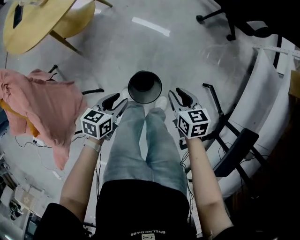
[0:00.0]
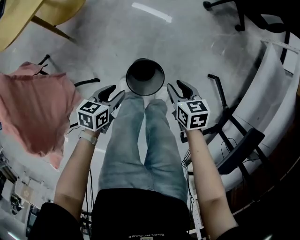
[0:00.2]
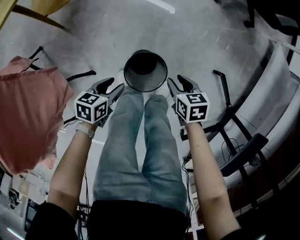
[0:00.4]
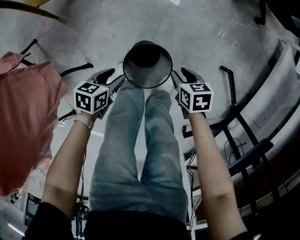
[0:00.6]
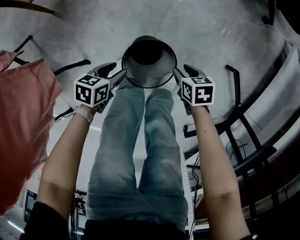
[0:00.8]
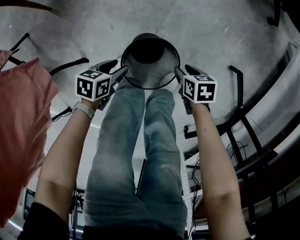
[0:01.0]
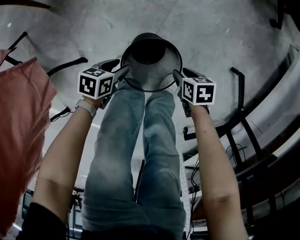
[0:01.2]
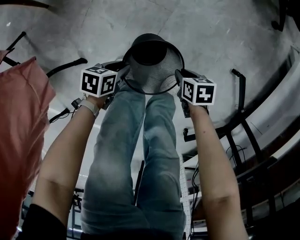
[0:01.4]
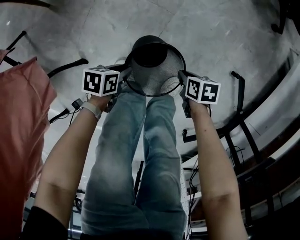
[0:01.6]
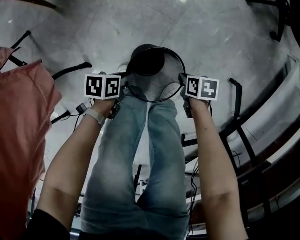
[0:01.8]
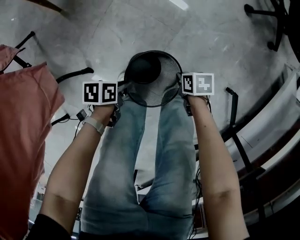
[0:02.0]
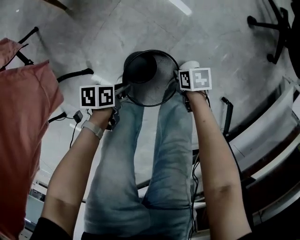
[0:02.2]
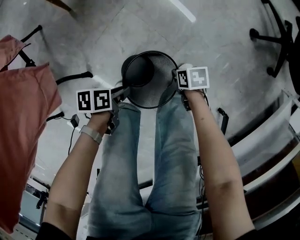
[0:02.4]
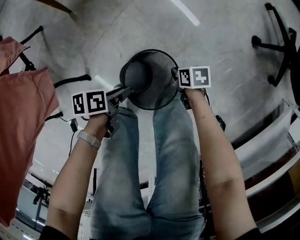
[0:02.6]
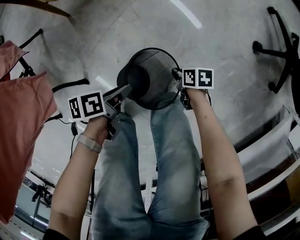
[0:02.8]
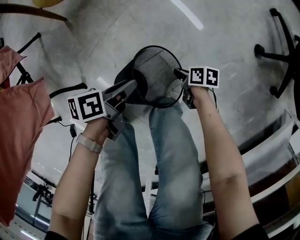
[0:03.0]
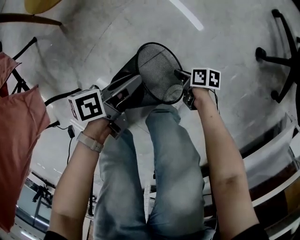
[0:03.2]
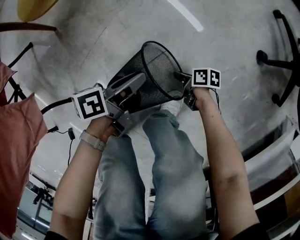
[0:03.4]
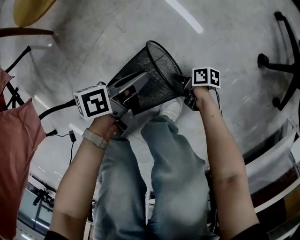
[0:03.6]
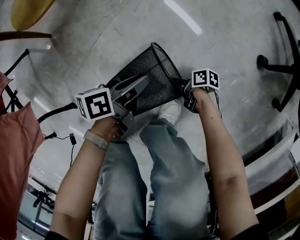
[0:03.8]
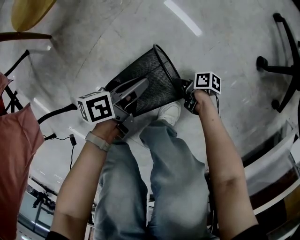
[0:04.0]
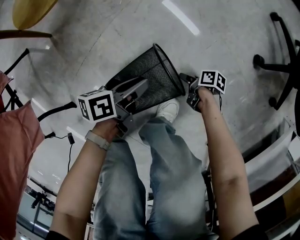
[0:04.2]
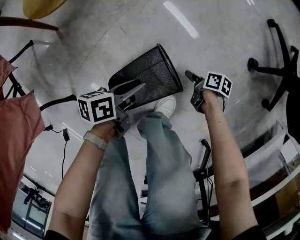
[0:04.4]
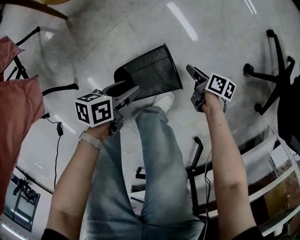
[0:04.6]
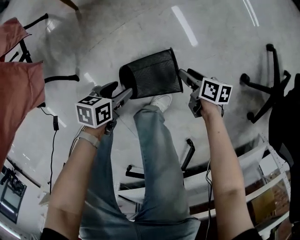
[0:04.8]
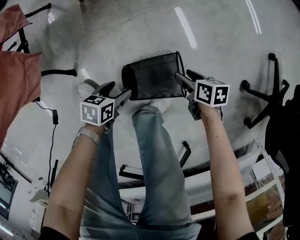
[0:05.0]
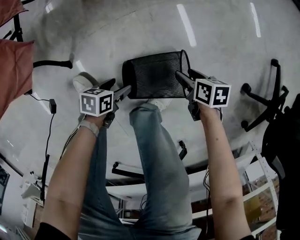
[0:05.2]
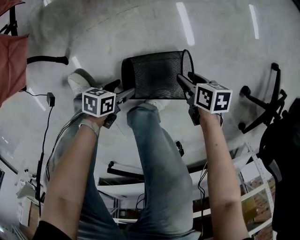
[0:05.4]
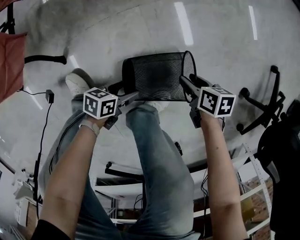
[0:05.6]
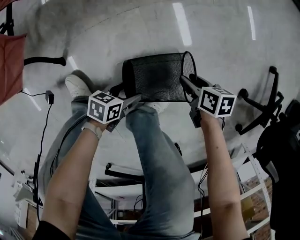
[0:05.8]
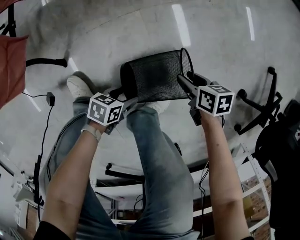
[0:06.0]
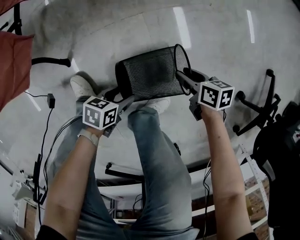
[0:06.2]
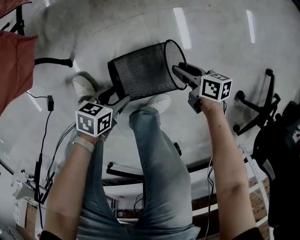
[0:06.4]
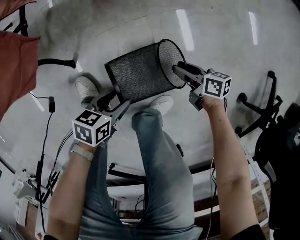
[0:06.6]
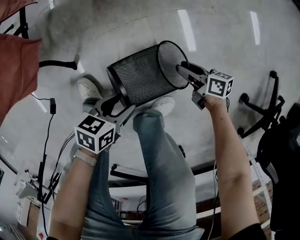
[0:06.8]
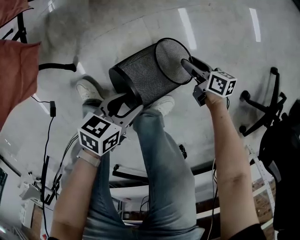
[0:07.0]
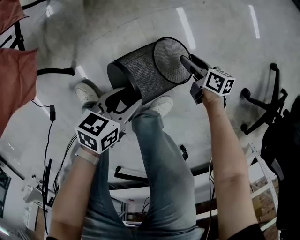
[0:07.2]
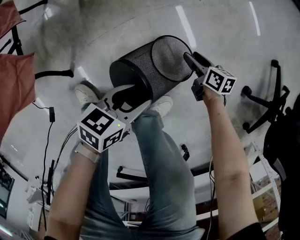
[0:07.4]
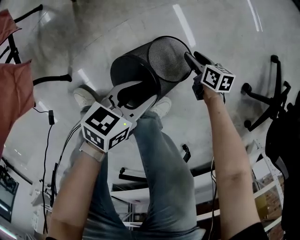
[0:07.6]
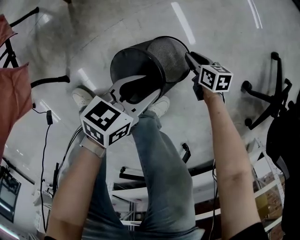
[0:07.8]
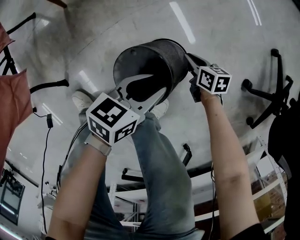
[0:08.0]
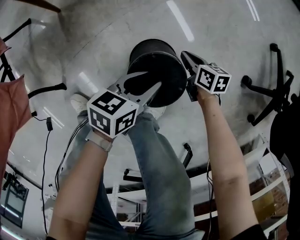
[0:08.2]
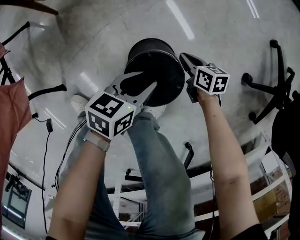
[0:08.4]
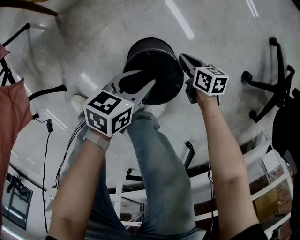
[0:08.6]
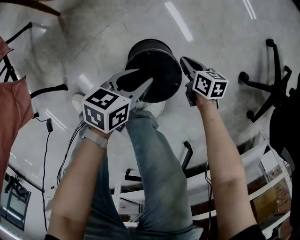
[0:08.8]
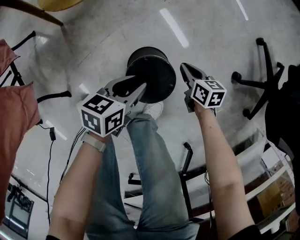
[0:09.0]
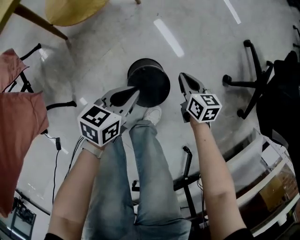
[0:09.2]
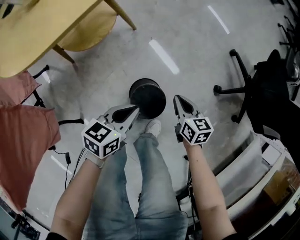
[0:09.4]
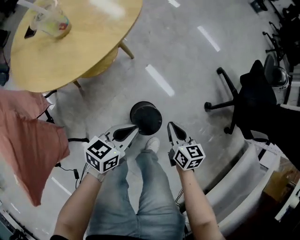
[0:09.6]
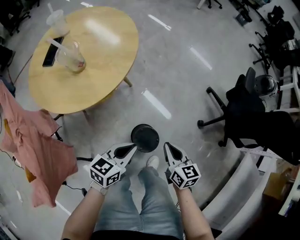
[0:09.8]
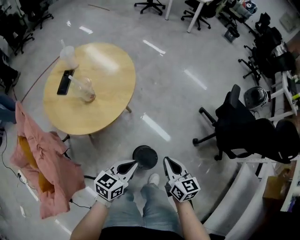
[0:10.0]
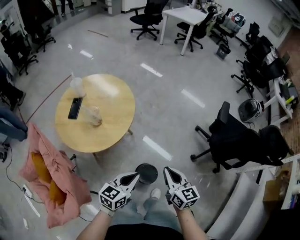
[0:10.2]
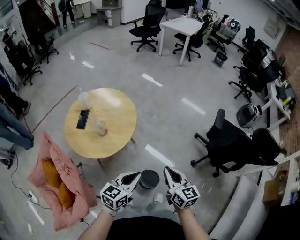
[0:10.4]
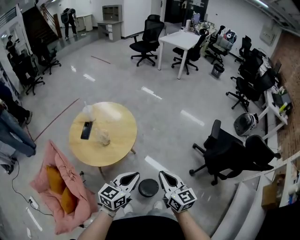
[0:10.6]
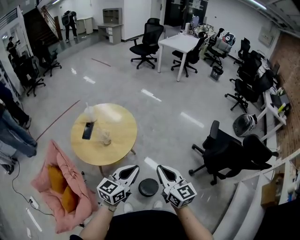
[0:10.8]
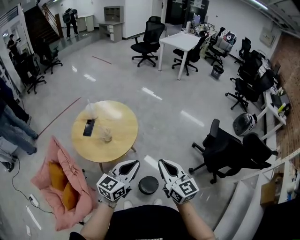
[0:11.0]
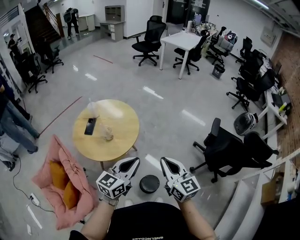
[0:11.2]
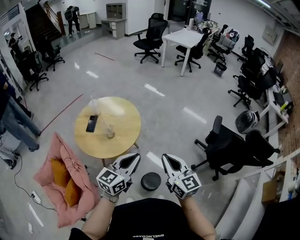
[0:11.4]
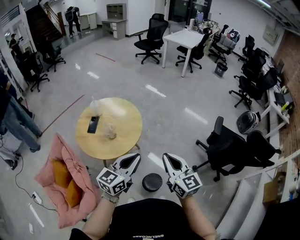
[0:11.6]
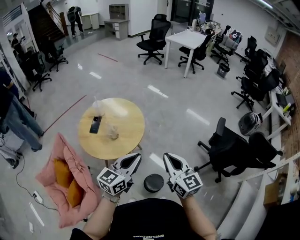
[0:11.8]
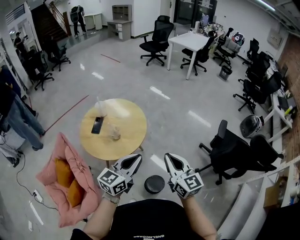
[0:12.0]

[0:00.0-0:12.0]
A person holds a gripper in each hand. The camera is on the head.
0:00.0 to 0:01.6: The grippers both shift downward by roughly 40 cm. The left gripper changes its angle by approximately 30 degrees. Meanwhile the right gripper rotates some 30 degrees.
0:01.6 to 0:03.0: The right gripper changes place by some 25 cm, and rotates roughly 20 degrees. Meanwhile the left gripper ends up some 25 cm from where it was, and swivels some 50 degrees.
0:03.0 to 0:04.4: The right gripper moves roughly 10 cm downward and comes back, and opens up.
0:04.4 to 0:06.0: The left gripper changes place by about 20 cm, and opens its fingers. Meanwhile the right gripper shifts by about 20 cm, and rotates around the line of its fingers by roughly 50 degrees, counterclockwise from behind.
0:06.0 to 0:07.6: The left gripper is displaced upward by some 15 cm, and changes its angle by some 20 degrees, while the right gripper moves about 15 cm, and swivels some 20 degrees.
0:07.6 to 0:09.0: The right gripper moves upward and to the right, roughly 10 cm, and closes.
0:09.0 to 0:10.4: The grippers both shift upward by about 70 cm. The left gripper changes its angle by some 40 degrees, and closes. The right gripper points its fingers some 30 degrees further upward.
0:10.4 to 0:12.0: The two grippers go some 15 cm upward.

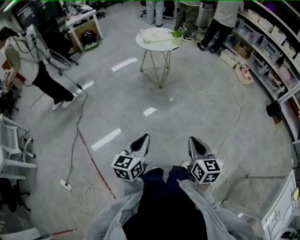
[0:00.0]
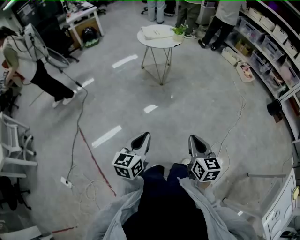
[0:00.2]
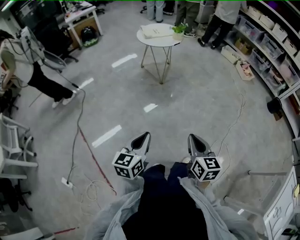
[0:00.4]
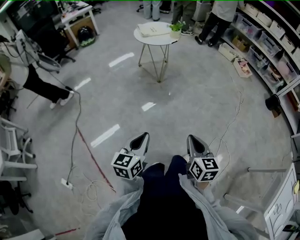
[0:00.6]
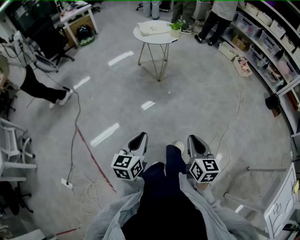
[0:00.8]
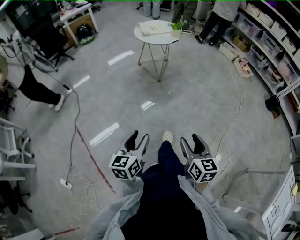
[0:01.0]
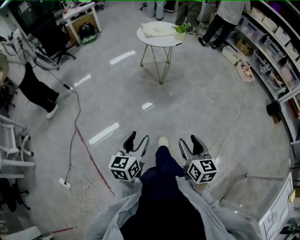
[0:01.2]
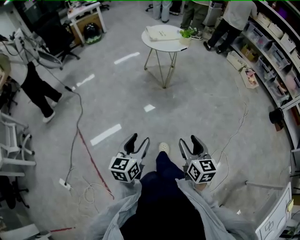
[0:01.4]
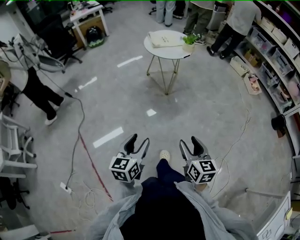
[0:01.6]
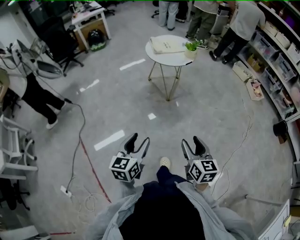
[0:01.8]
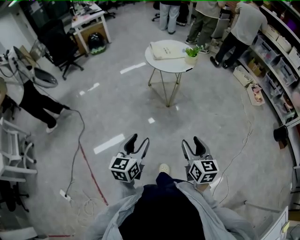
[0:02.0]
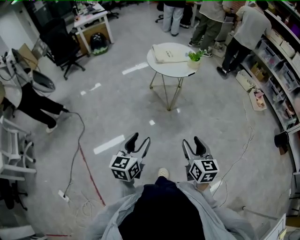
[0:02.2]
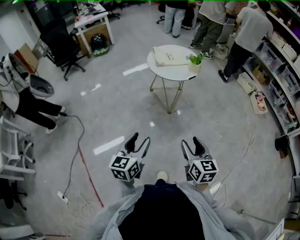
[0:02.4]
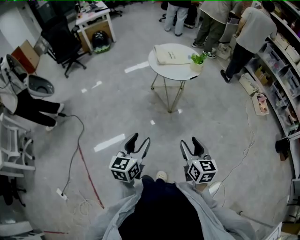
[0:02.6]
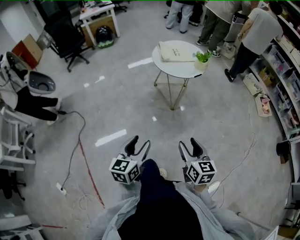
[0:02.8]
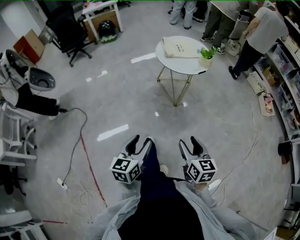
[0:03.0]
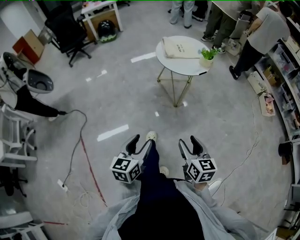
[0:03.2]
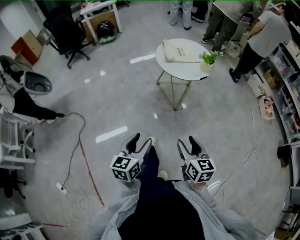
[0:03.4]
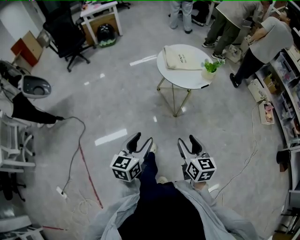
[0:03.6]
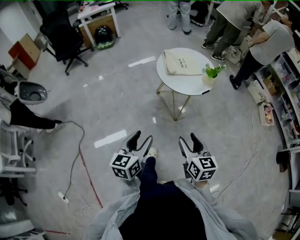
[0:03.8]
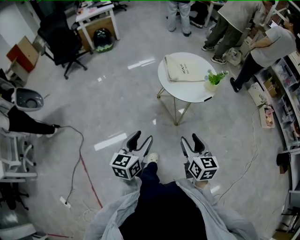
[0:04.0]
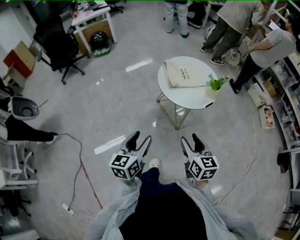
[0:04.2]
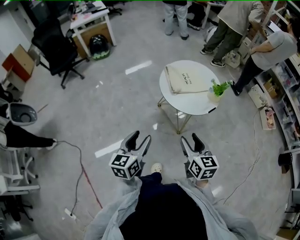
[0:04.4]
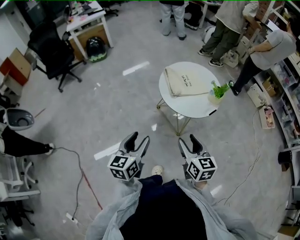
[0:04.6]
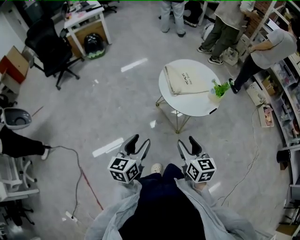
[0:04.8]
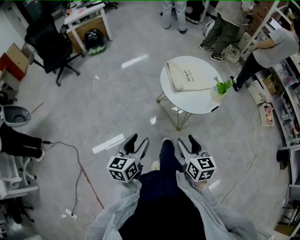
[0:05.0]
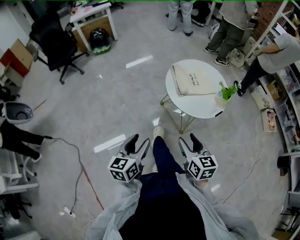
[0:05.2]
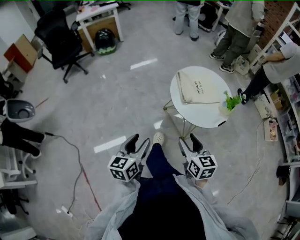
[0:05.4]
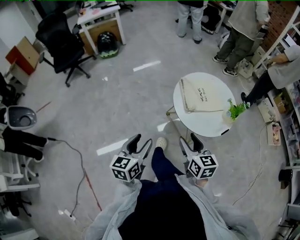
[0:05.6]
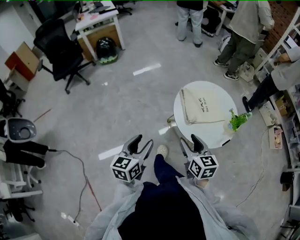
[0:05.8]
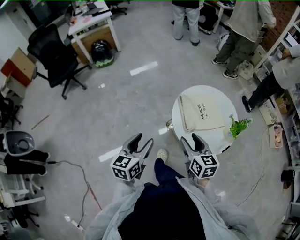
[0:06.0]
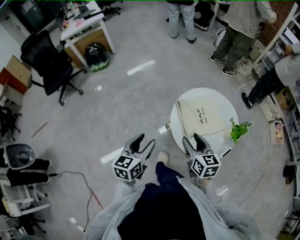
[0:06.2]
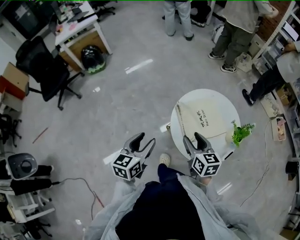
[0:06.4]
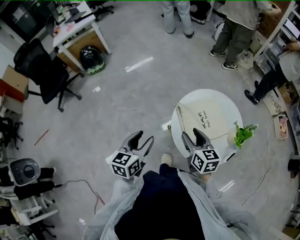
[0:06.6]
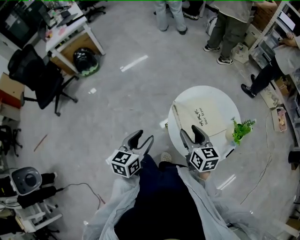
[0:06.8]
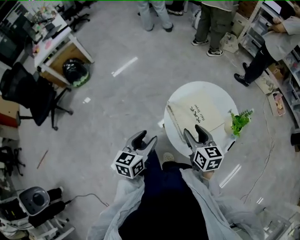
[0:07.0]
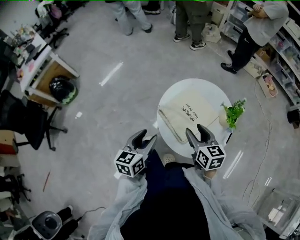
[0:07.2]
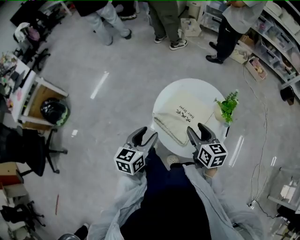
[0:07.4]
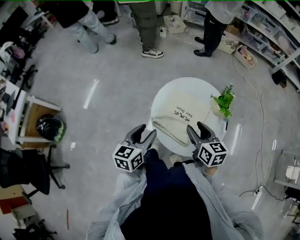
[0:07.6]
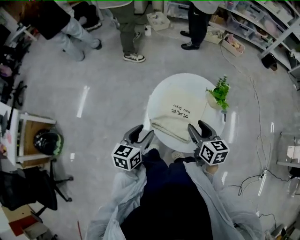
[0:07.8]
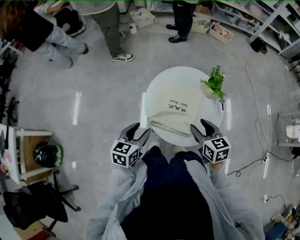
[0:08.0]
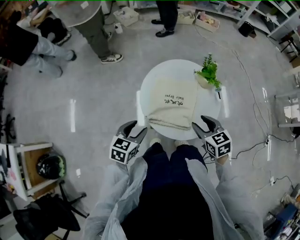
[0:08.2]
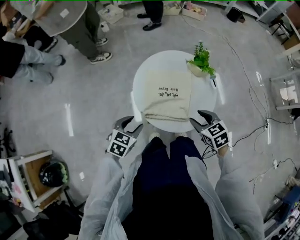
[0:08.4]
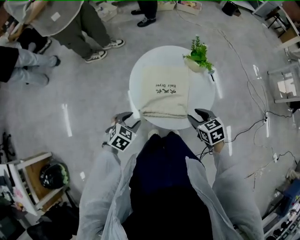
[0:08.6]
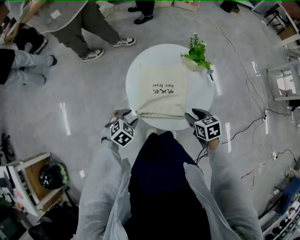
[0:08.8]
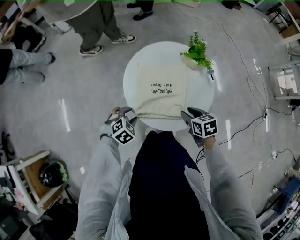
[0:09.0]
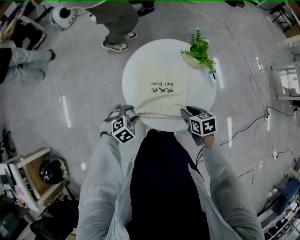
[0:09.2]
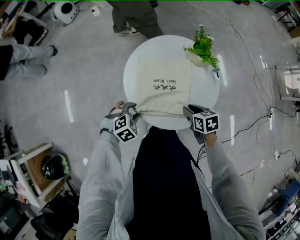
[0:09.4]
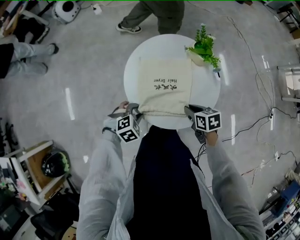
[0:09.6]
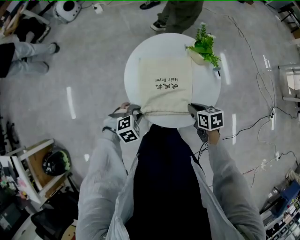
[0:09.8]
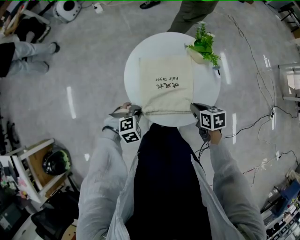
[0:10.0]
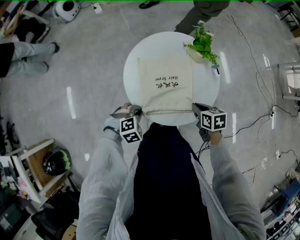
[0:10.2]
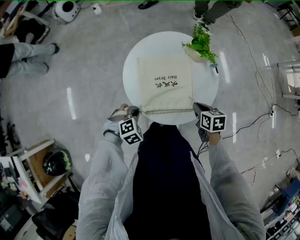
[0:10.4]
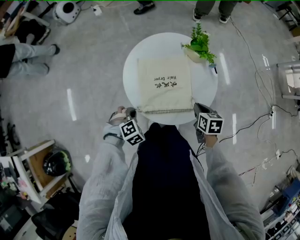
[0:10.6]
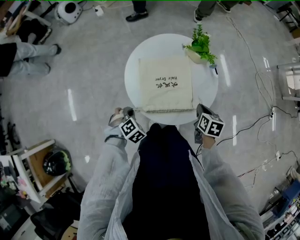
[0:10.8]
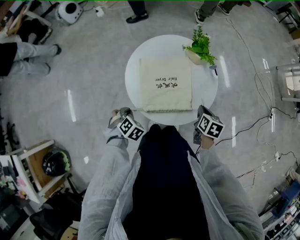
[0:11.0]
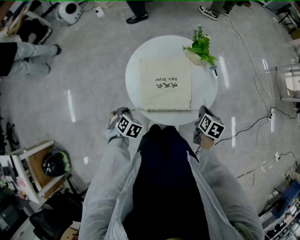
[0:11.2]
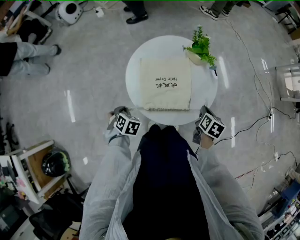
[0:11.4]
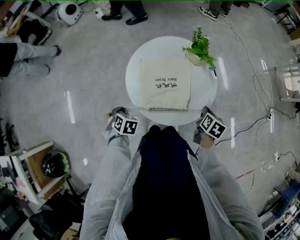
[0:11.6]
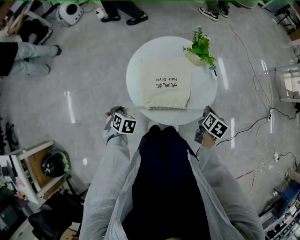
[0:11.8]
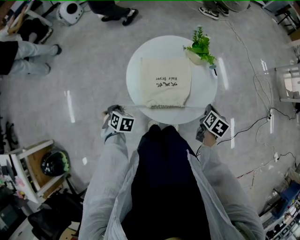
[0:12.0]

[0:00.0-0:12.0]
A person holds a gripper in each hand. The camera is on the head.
0:00.0 to 0:01.6: The right gripper moves forward, approximately 15 cm, and opens its fingers. The left gripper moves forward and to the left, roughly 15 cm, and opens its fingers.
0:01.6 to 0:03.0: The two grippers go some 15 cm forward.
0:03.0 to 0:04.4: Both grippers move forward, about 30 cm.
0:04.4 to 0:06.0: The two grippers go roughly 25 cm forward.
0:06.0 to 0:07.6: The left gripper changes place by about 30 cm, and swivels roughly 50 degrees, while the right gripper changes place by approximately 15 cm, and turns by roughly 40 degrees.
0:07.6 to 0:09.0: Both grippers travel together downward, about 15 cm. The left gripper angles its fingers downward, by some 40 degrees. The right gripper changes its angle by approximately 30 degrees.
0:09.0 to 0:10.4: The right gripper ends up approximately 5 cm from where it was, and closes its fingers. Meanwhile the left gripper closes up.
0:10.4 to 0:12.0: The left gripper shifts roughly 10 cm to the left, and rolls counterclockwise, seen from behind, by about 50 degrees, while the right gripper goes about 10 cm to the right, and turns by approximately 40 degrees.
